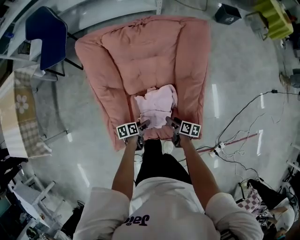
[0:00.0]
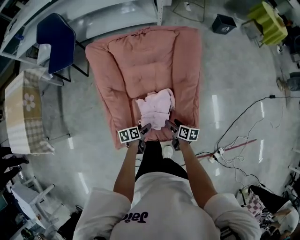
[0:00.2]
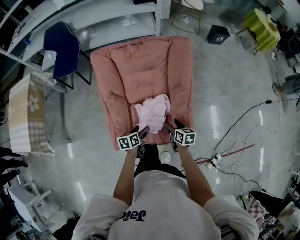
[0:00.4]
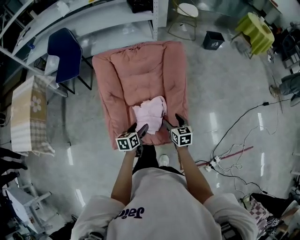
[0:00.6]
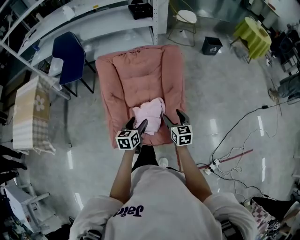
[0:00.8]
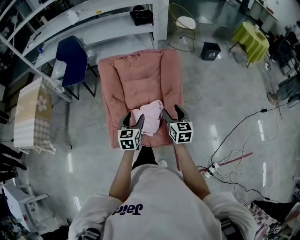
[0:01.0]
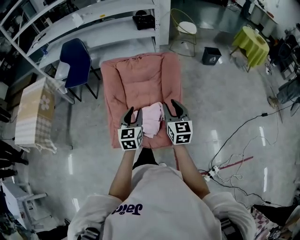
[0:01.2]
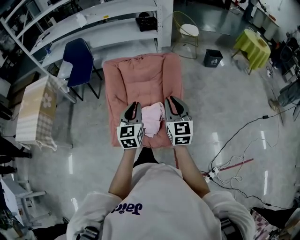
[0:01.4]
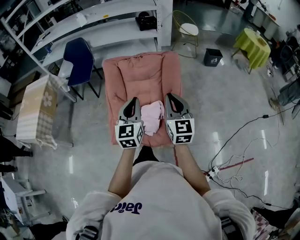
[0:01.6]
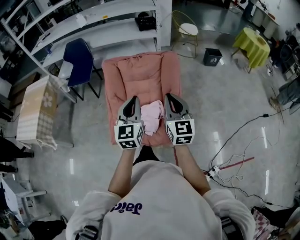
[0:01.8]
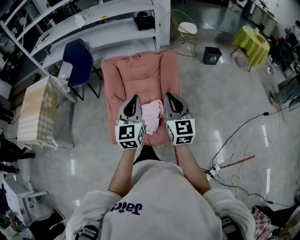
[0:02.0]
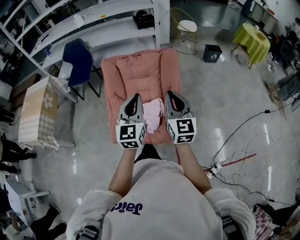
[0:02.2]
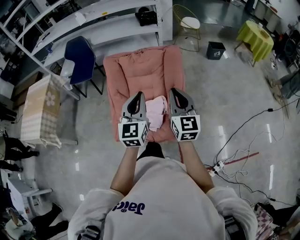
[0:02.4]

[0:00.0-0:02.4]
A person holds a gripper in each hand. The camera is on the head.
0:00.0 to 0:01.2: The right gripper goes approximately 50 cm upward, twists about 60 degrees counterclockwise, seen from behind, and closes its fingers.
0:01.2 to 0:02.4: The right gripper moves upward, some 10 cm, and closes up.

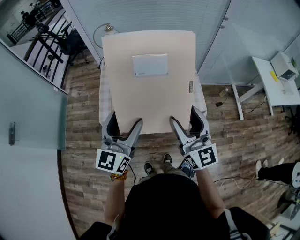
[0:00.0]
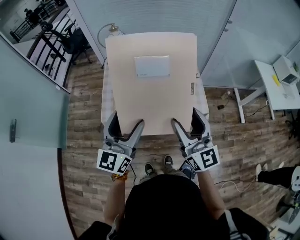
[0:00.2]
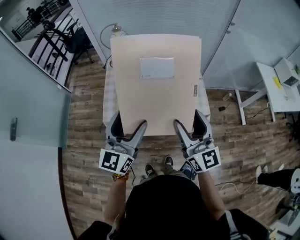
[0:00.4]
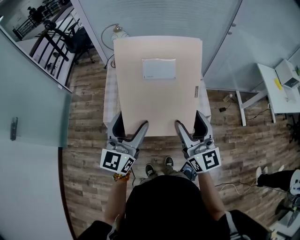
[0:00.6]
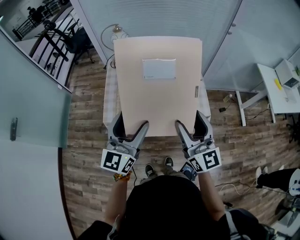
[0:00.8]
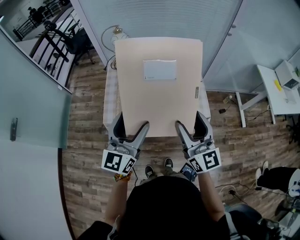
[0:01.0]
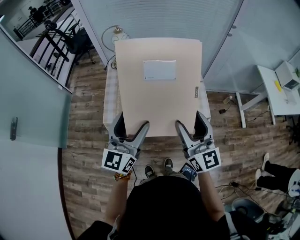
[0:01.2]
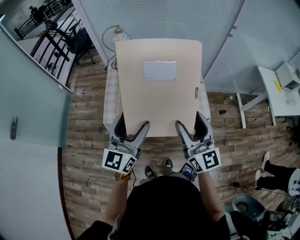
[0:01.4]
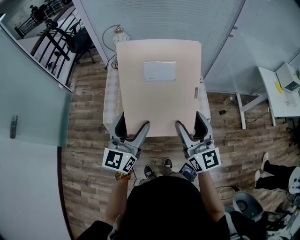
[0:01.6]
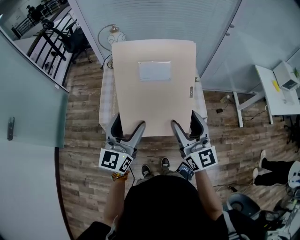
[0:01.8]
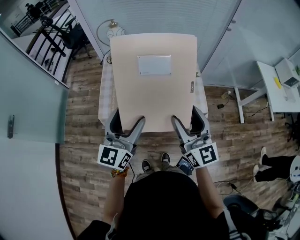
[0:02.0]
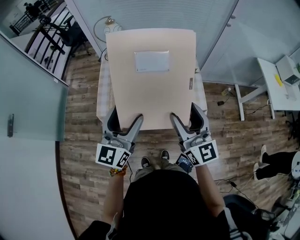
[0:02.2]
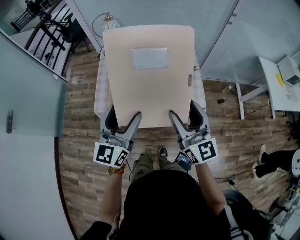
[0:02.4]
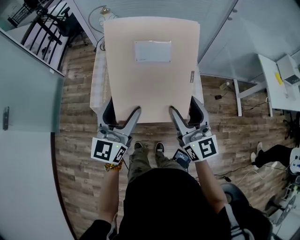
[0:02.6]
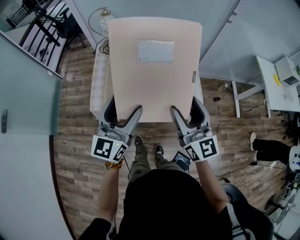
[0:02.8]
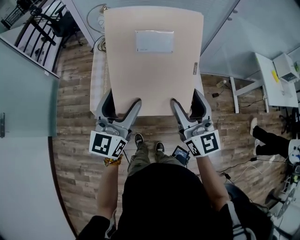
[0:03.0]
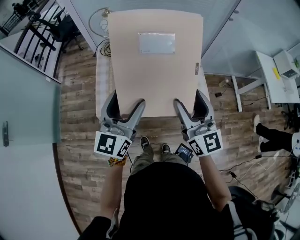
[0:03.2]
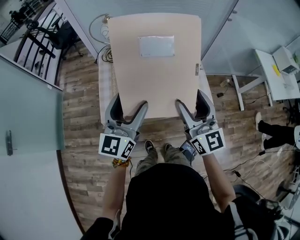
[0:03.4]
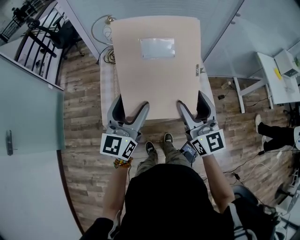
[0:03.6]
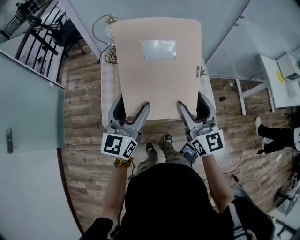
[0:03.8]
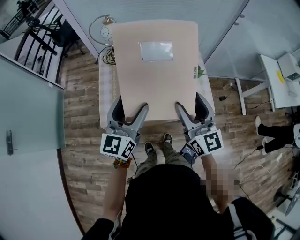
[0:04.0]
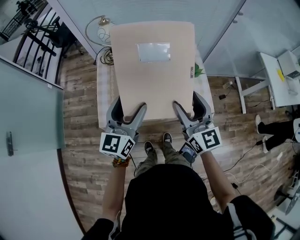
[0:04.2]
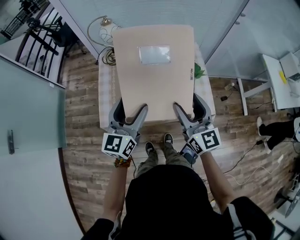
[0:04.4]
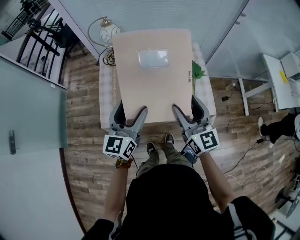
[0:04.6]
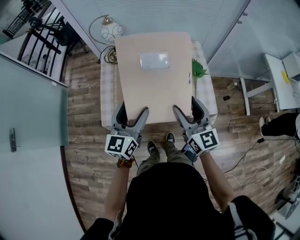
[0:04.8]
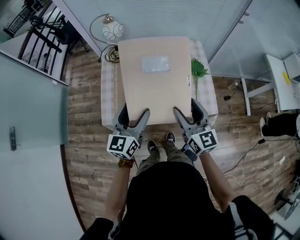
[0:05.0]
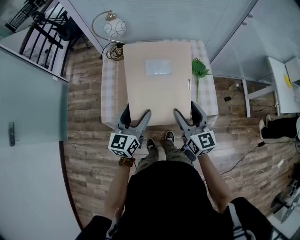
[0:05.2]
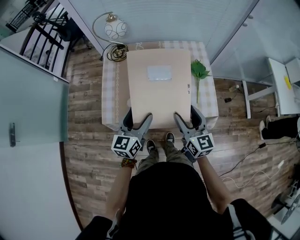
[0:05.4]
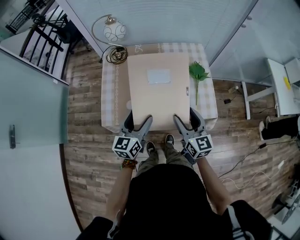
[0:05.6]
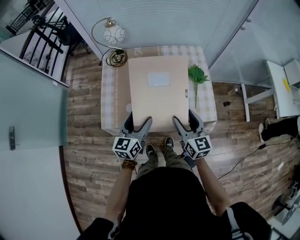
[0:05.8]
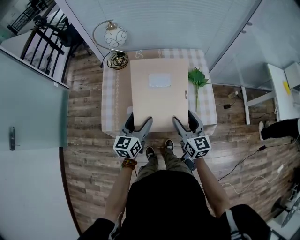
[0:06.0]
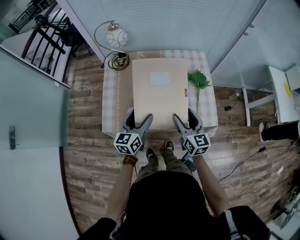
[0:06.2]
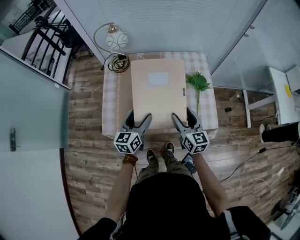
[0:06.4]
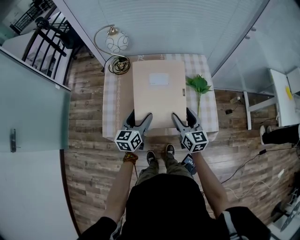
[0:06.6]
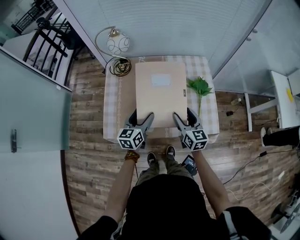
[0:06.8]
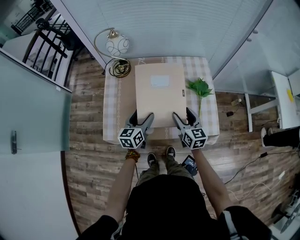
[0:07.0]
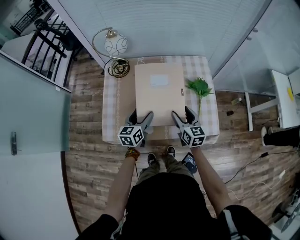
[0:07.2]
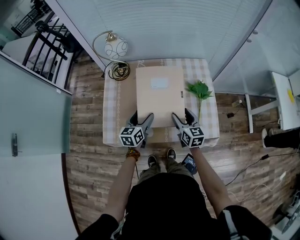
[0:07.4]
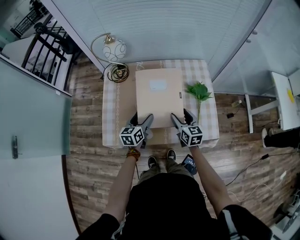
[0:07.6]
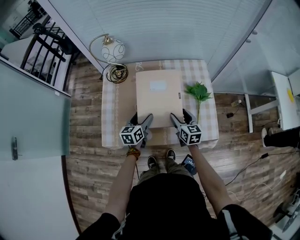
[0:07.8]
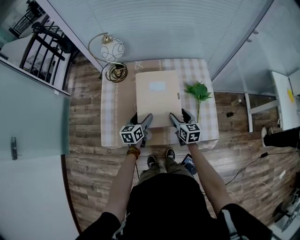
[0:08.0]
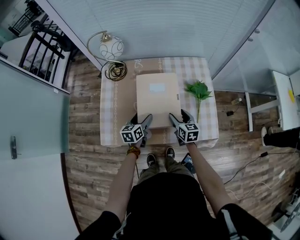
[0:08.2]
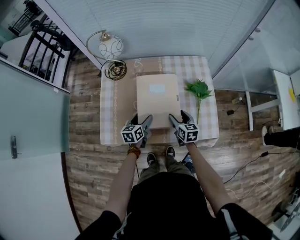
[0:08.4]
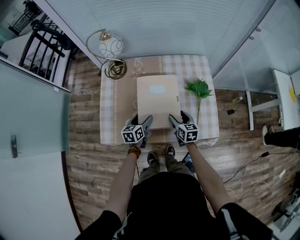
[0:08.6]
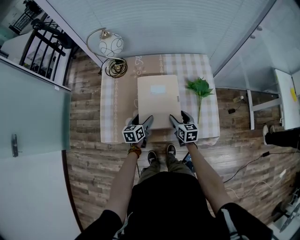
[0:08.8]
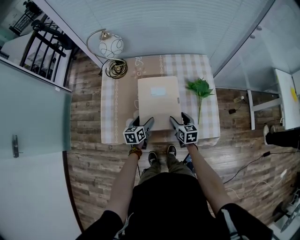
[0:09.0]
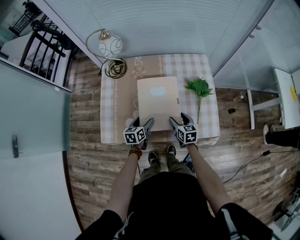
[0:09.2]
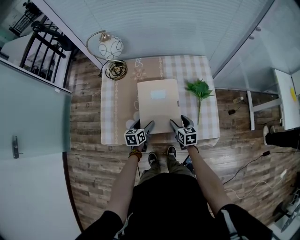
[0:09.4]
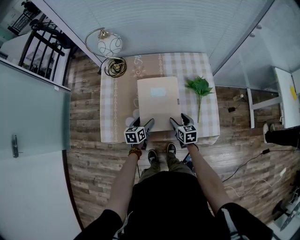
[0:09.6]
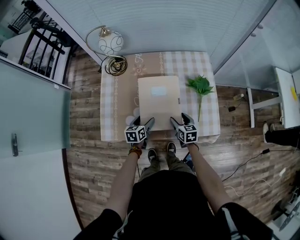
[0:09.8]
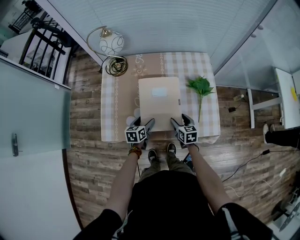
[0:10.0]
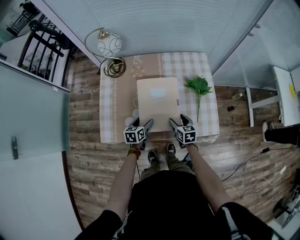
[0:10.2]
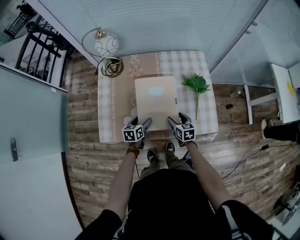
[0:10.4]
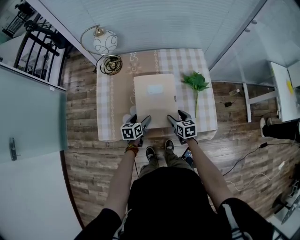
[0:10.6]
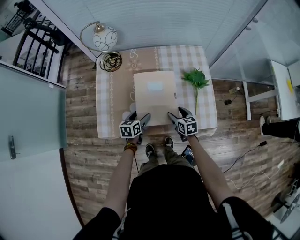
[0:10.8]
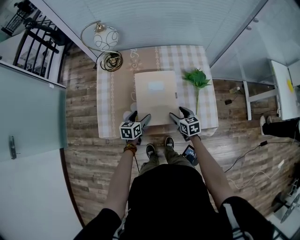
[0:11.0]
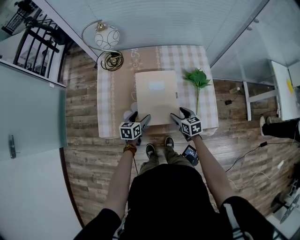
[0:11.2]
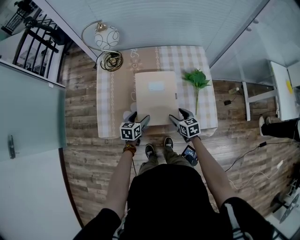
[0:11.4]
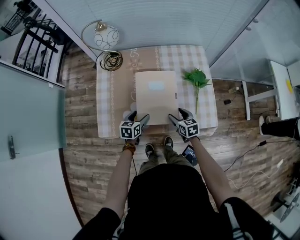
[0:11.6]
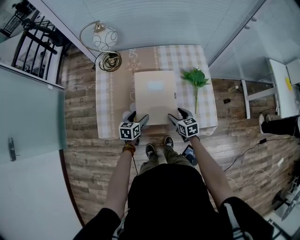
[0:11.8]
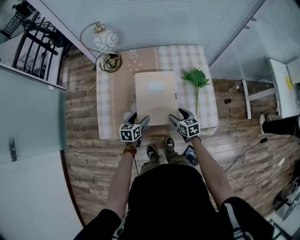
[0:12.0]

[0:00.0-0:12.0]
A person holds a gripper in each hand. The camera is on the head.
0:00.0 to 0:03.0: The grippers make only small movements.
0:03.0 to 0:04.4: The grippers both shift forward and downward by roughly 10 cm.
0:04.4 to 0:06.0: Both grippers travel together downward, approximately 15 cm.
0:06.0 to 0:07.6: The two grippers go about 15 cm forward and downward.
0:07.6 to 0:09.0: Both grippers travel together downward, approximately 10 cm.
0:09.0 to 0:12.0: There are only small adjustments of the grippers.

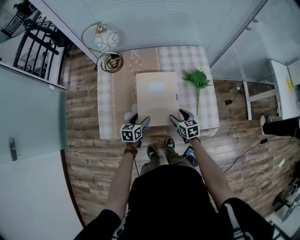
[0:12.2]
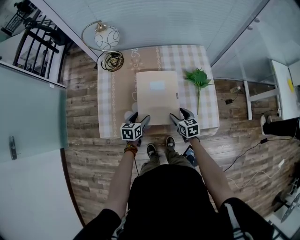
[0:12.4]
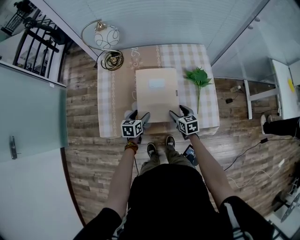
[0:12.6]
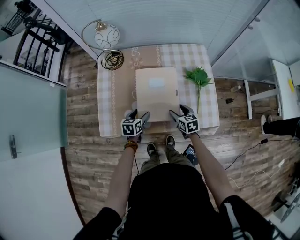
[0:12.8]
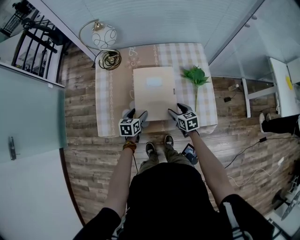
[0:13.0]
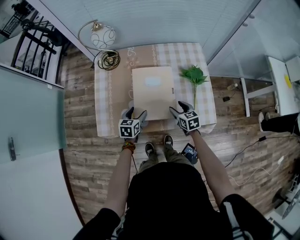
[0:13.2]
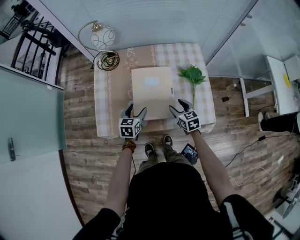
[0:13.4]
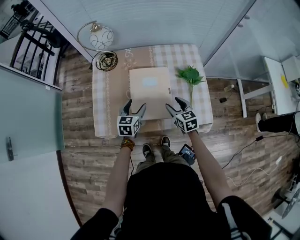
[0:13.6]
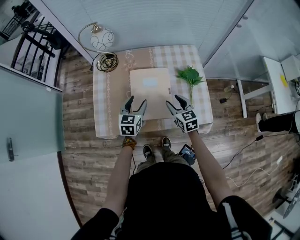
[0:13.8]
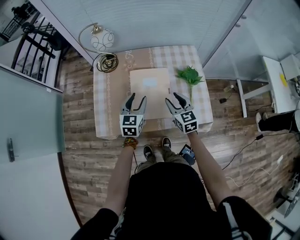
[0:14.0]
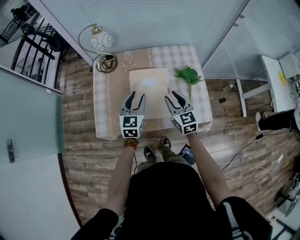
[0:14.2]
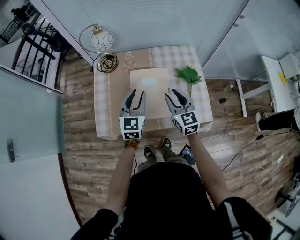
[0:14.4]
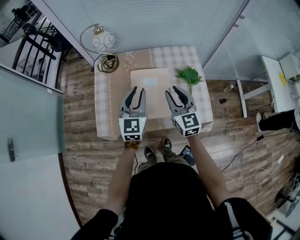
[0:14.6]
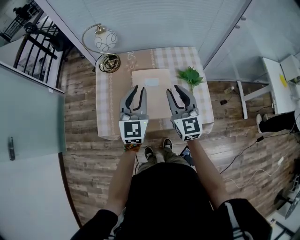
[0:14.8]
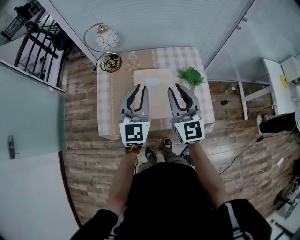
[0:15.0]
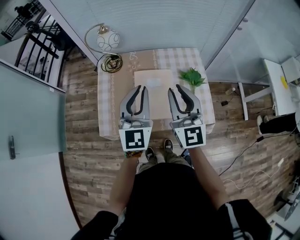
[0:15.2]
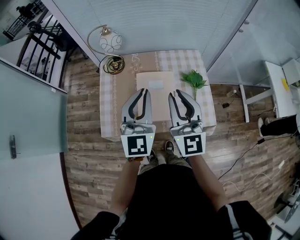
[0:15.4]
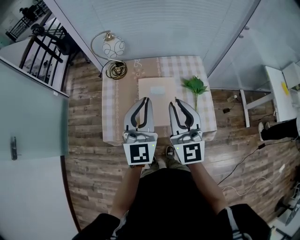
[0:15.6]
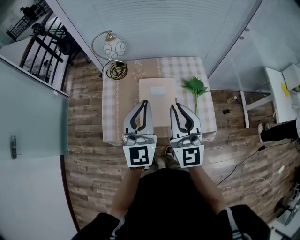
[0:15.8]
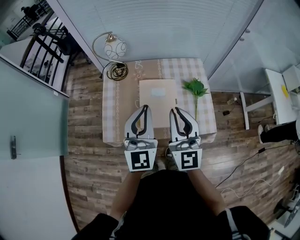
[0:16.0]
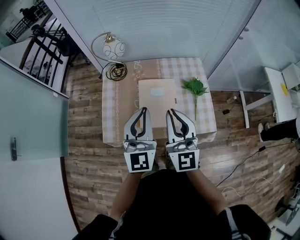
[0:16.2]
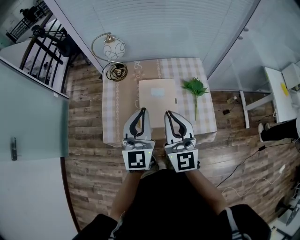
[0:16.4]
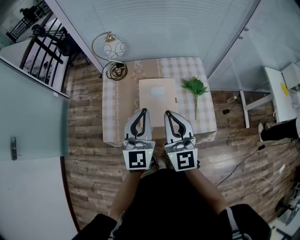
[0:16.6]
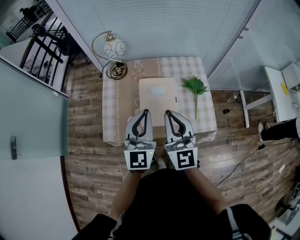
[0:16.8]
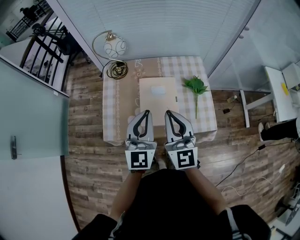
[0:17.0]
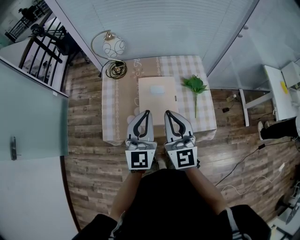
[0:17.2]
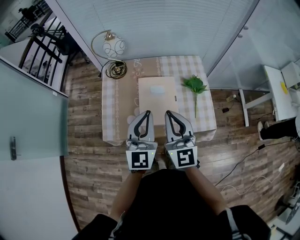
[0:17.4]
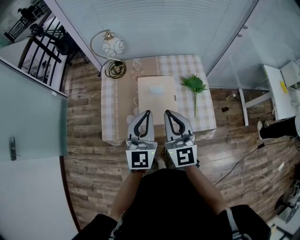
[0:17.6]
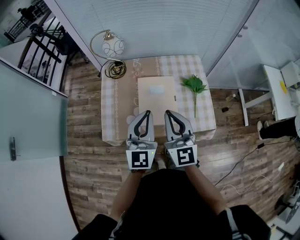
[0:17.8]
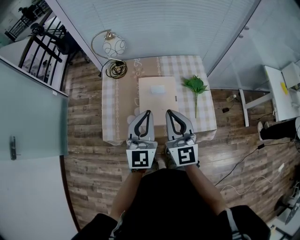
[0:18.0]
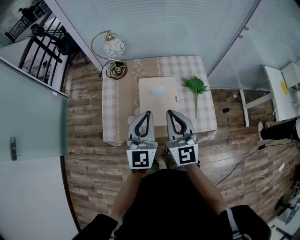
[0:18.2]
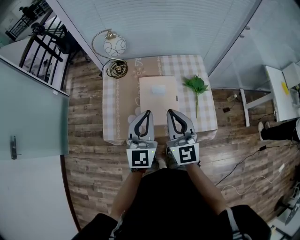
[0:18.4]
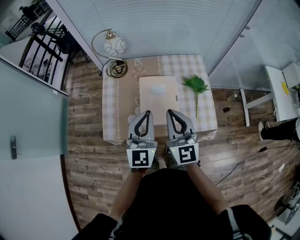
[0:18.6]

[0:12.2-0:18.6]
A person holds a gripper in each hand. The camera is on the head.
0:12.2 to 0:13.8: The two grippers go approximately 10 cm upward. The left gripper rotates about 20 degrees.
0:13.8 to 0:15.4: Both grippers move upward, about 25 cm. The left gripper tilts its fingers approximately 30 degrees upward, and closes its fingers. The right gripper tips its fingers upward by roughly 40 degrees, and closes.
0:15.4 to 0:17.0: The left gripper shifts by about 5 cm; the right gripper moves roughly 5 cm.
0:17.0 to 0:18.6: The grippers make only small movements.

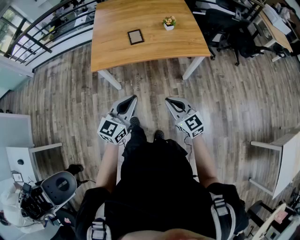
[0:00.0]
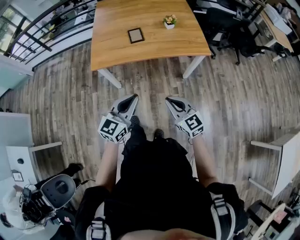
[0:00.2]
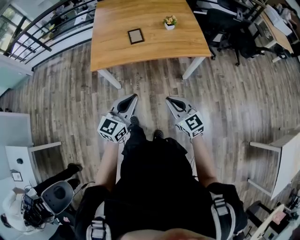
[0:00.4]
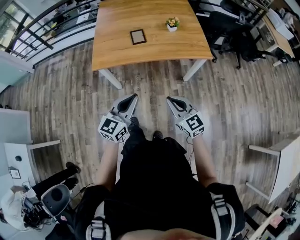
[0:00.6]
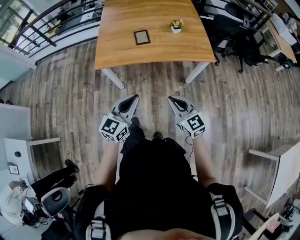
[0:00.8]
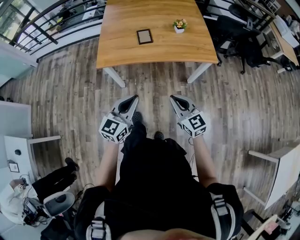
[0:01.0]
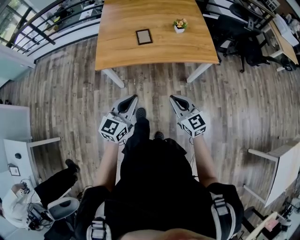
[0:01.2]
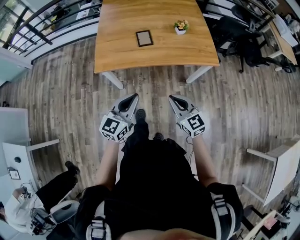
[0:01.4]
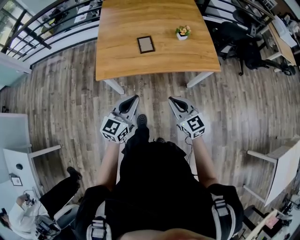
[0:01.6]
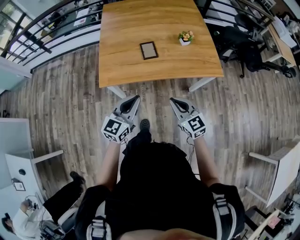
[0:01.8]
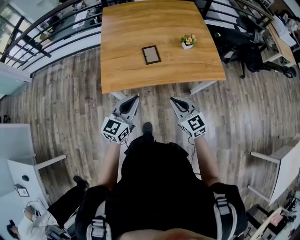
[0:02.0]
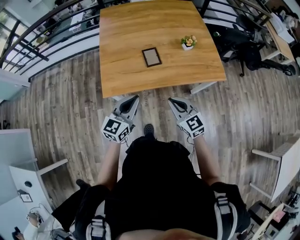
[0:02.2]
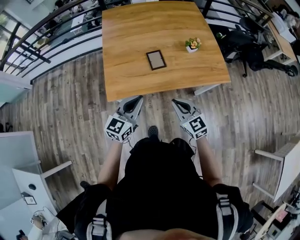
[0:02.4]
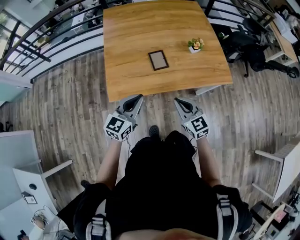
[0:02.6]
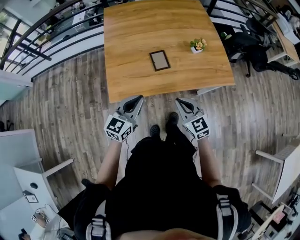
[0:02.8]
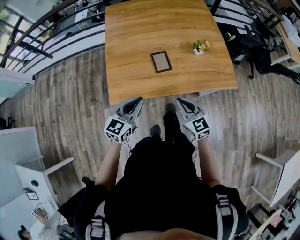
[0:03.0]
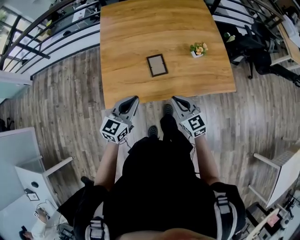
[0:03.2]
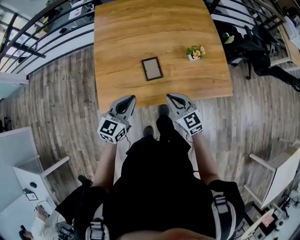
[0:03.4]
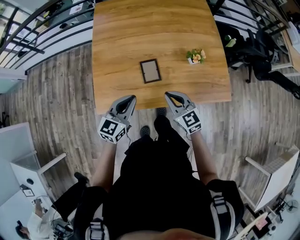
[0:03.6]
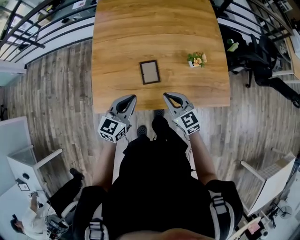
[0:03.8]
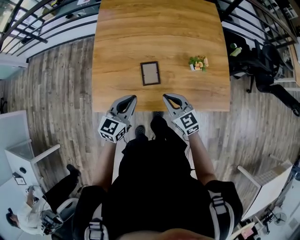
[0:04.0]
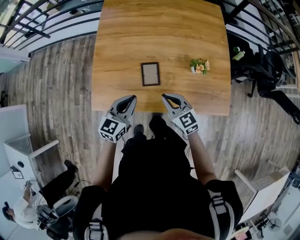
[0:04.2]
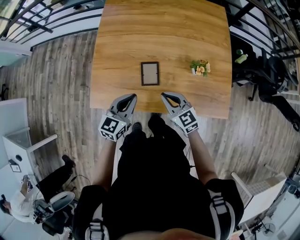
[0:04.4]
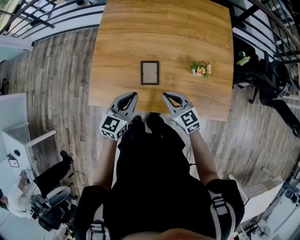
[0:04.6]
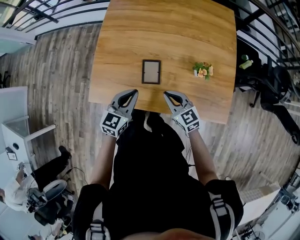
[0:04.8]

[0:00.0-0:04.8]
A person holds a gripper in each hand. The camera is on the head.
0:00.0 to 0:01.6: The right gripper is displaced forward by approximately 15 cm. The left gripper goes roughly 15 cm forward and to the left.
0:01.6 to 0:03.2: Both grippers travel together forward, roughly 20 cm.
0:03.2 to 0:04.8: The grippers both shift forward and to the right by roughly 15 cm. The right gripper rotates approximately 20 degrees.
